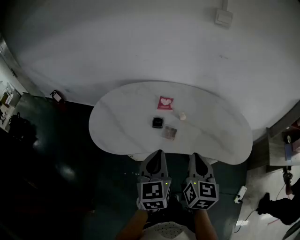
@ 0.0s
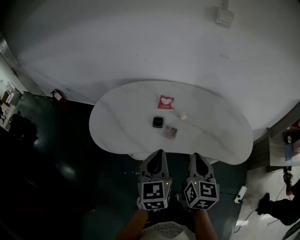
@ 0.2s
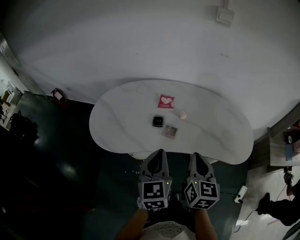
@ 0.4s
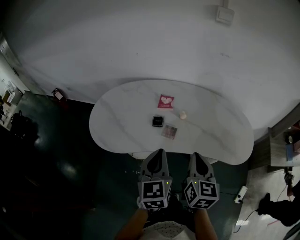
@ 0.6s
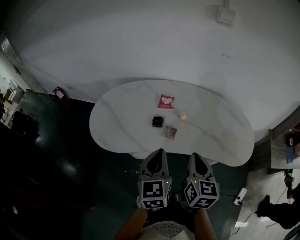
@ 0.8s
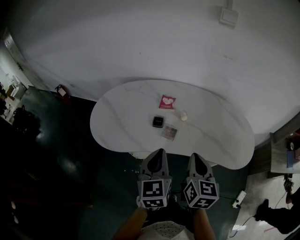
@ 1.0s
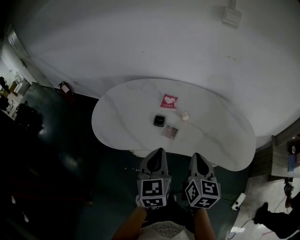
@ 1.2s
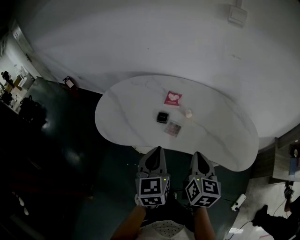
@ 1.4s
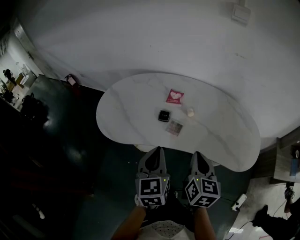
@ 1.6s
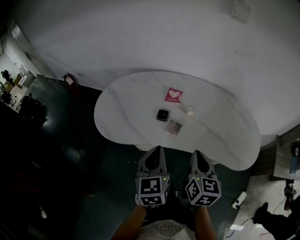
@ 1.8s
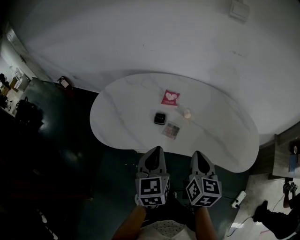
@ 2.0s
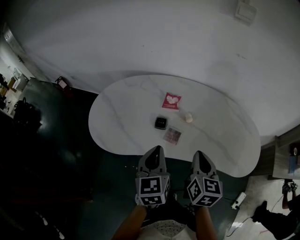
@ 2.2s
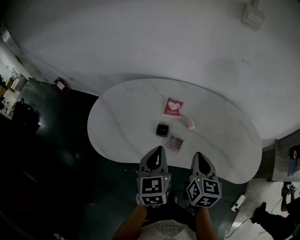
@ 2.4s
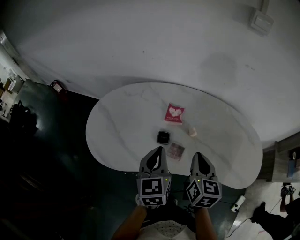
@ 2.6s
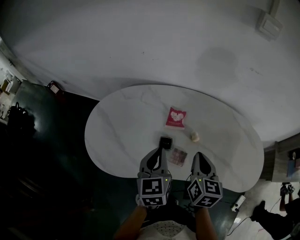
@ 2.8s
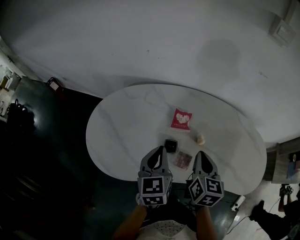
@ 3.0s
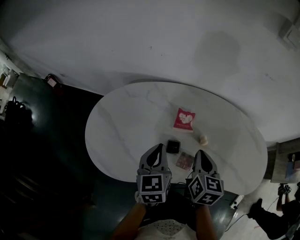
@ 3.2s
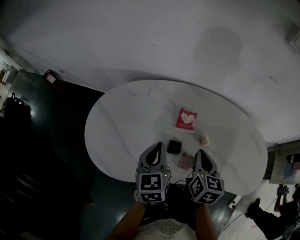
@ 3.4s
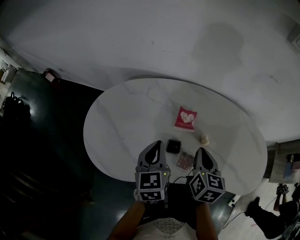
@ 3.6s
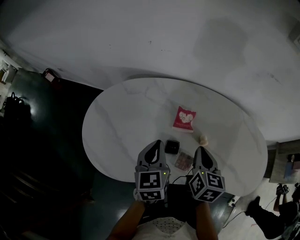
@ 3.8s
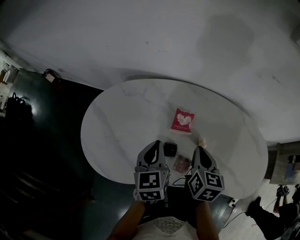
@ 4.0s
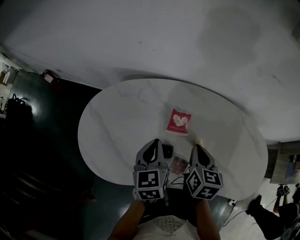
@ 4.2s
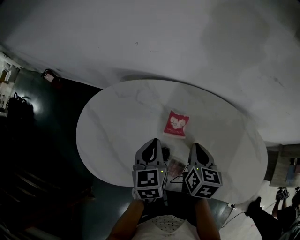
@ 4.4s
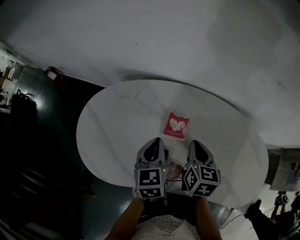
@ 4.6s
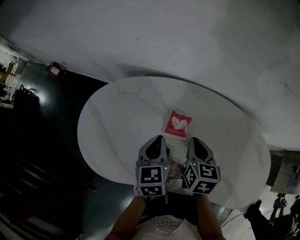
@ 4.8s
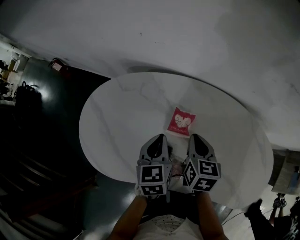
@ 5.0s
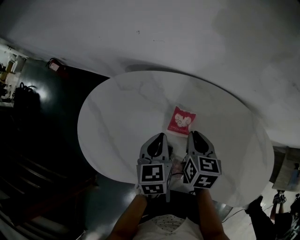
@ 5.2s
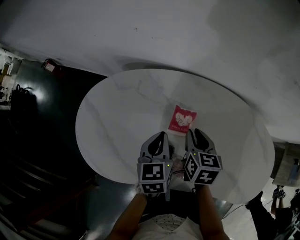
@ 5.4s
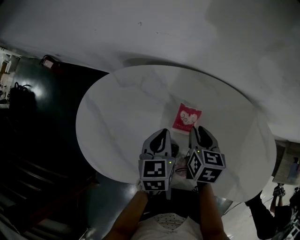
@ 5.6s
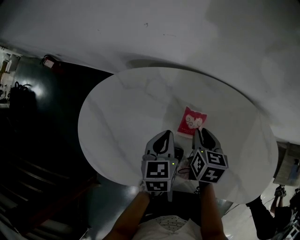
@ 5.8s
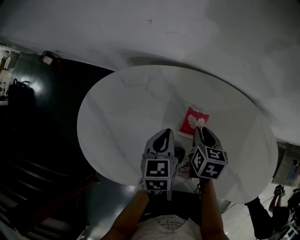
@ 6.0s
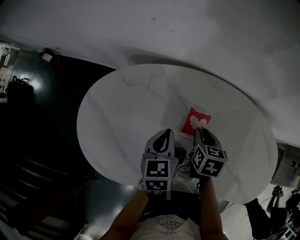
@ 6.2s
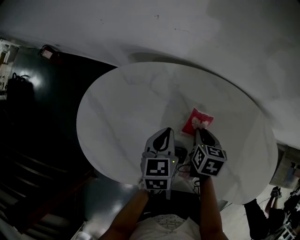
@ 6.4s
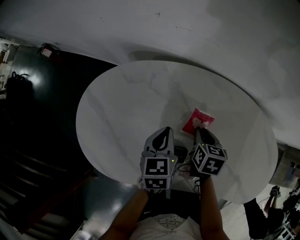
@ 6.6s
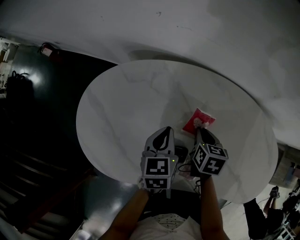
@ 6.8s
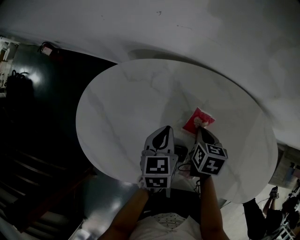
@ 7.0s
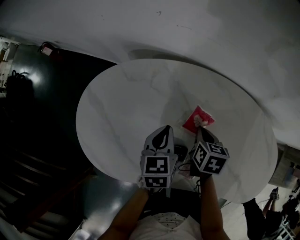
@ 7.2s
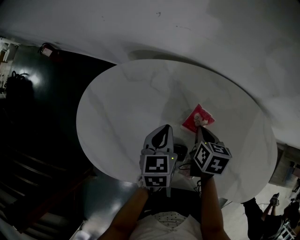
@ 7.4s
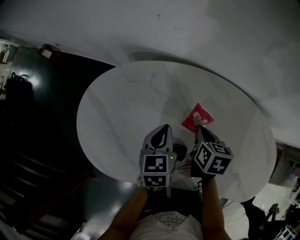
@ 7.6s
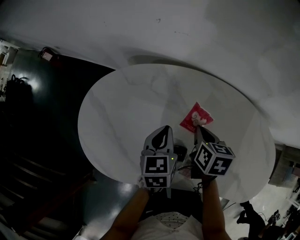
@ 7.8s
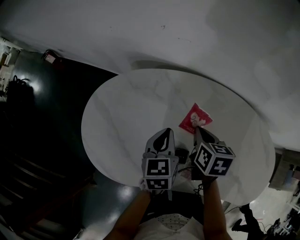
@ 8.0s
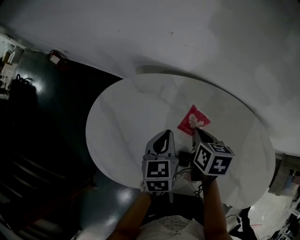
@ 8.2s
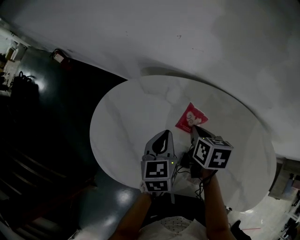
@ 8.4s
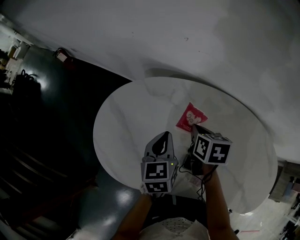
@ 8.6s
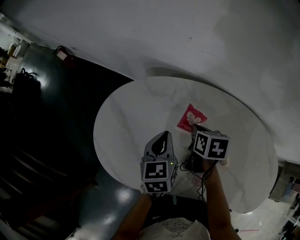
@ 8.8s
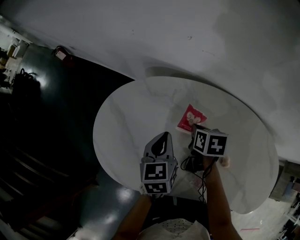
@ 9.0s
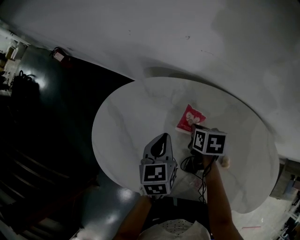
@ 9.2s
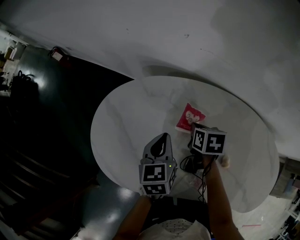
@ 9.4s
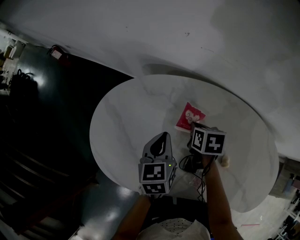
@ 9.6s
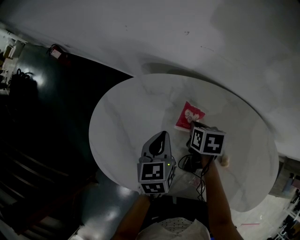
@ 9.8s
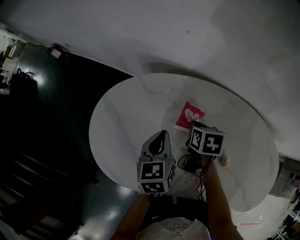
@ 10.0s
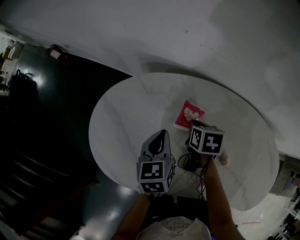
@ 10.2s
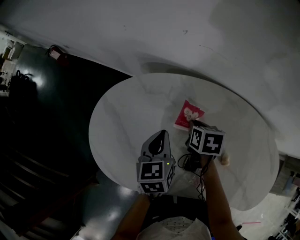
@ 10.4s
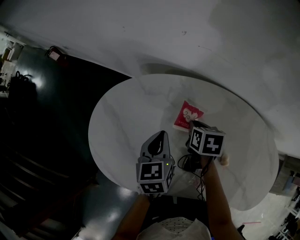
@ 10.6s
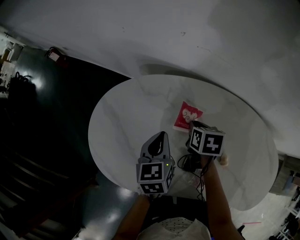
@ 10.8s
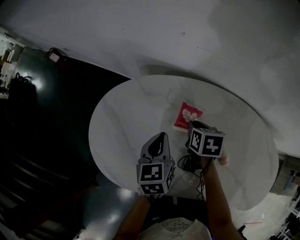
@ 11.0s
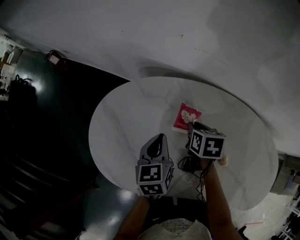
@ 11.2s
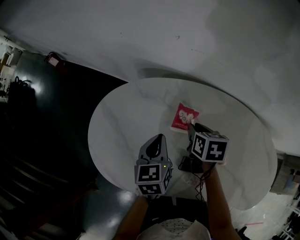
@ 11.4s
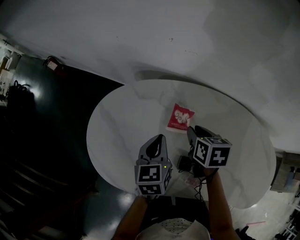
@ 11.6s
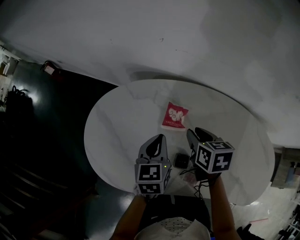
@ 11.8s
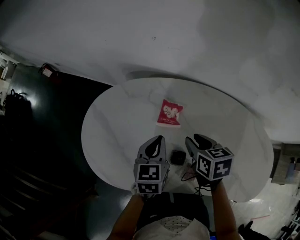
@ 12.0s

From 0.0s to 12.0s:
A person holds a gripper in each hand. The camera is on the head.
From 0.0s to 1.6s: The grippers stay close to where they were, moving slightly.
From 1.6s to 3.0s: The two grippers go roughly 20 cm forward.
From 3.0s to 4.4s: Both grippers move forward, roughly 10 cm.
From 4.4s to 6.0s: The right gripper goes roughly 10 cm downward and forward; the left gripper is displaced downward by approximately 5 cm.
From 6.0s to 7.6s: The grippers make only small movements.
From 7.6s to 9.0s: The left gripper goes about 10 cm to the left, while the right gripper heads to the left and forward, covering some 10 cm.
From 9.0s to 10.4s: The grippers move only a little.
From 10.4s to 12.0s: The right gripper travels backward and upward by about 10 cm; the left gripper goes roughly 5 cm to the right.

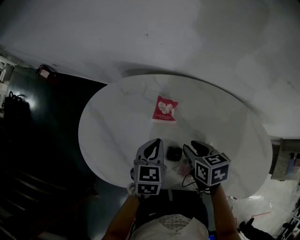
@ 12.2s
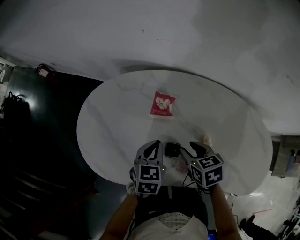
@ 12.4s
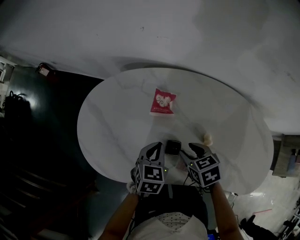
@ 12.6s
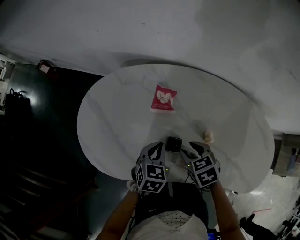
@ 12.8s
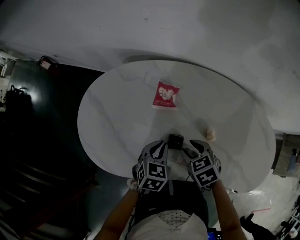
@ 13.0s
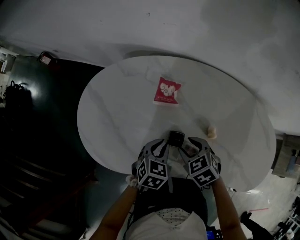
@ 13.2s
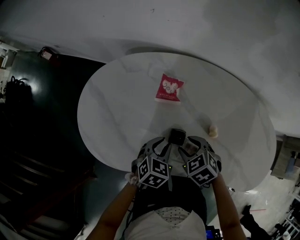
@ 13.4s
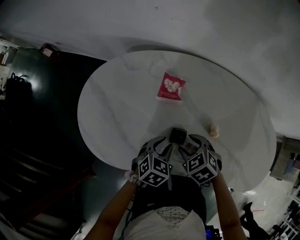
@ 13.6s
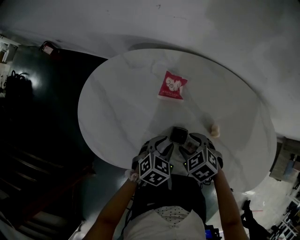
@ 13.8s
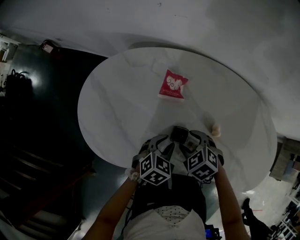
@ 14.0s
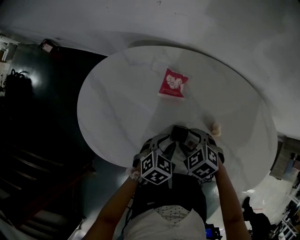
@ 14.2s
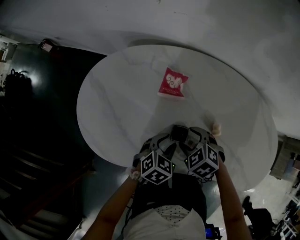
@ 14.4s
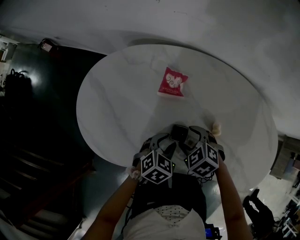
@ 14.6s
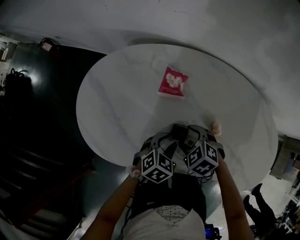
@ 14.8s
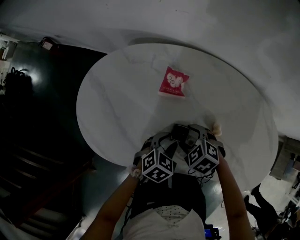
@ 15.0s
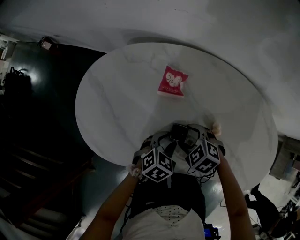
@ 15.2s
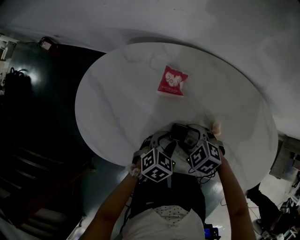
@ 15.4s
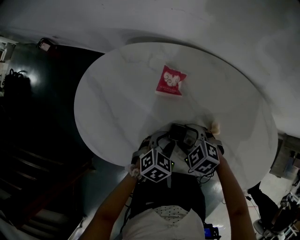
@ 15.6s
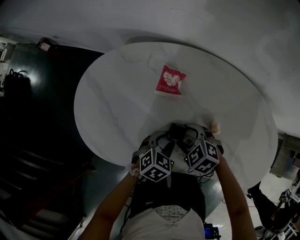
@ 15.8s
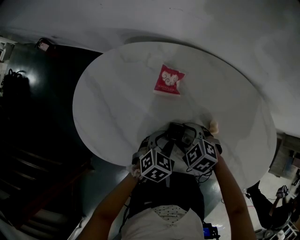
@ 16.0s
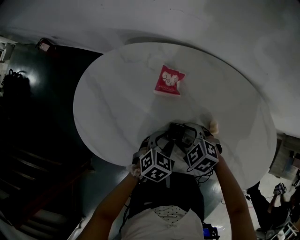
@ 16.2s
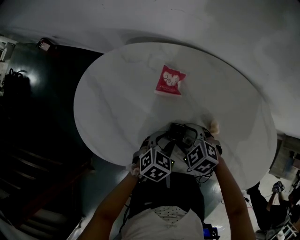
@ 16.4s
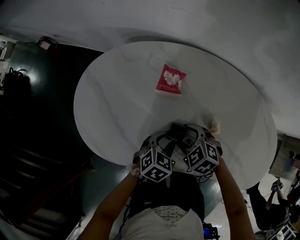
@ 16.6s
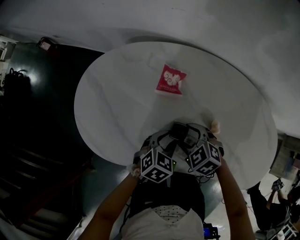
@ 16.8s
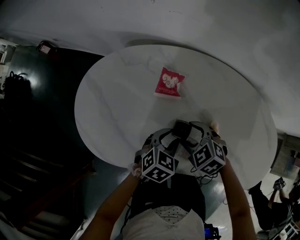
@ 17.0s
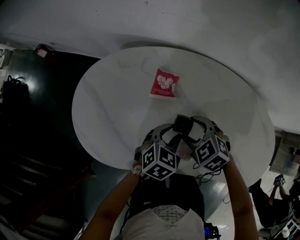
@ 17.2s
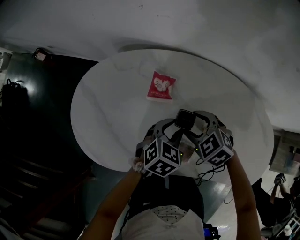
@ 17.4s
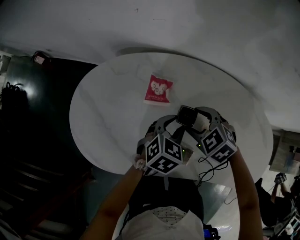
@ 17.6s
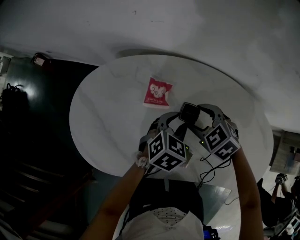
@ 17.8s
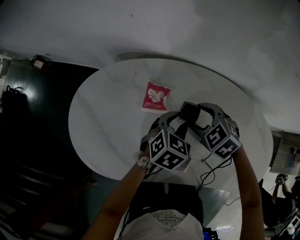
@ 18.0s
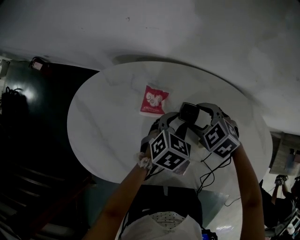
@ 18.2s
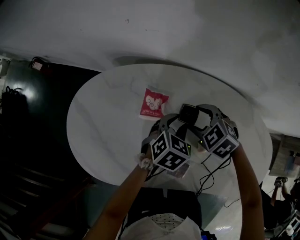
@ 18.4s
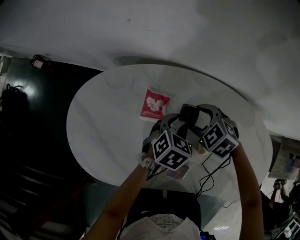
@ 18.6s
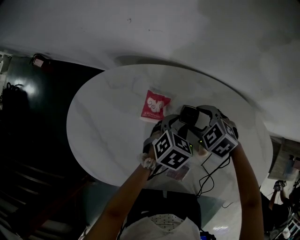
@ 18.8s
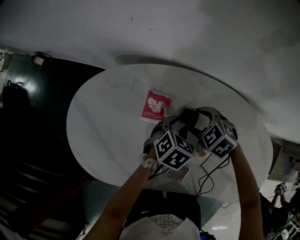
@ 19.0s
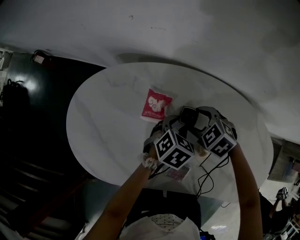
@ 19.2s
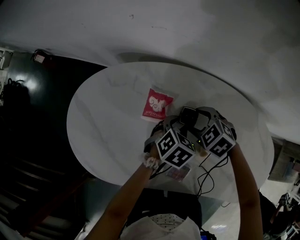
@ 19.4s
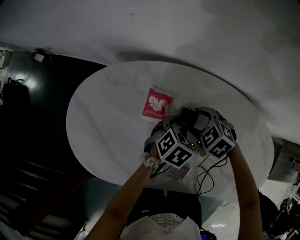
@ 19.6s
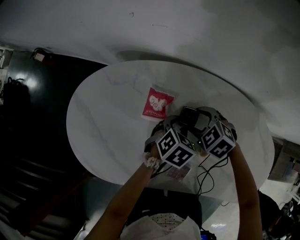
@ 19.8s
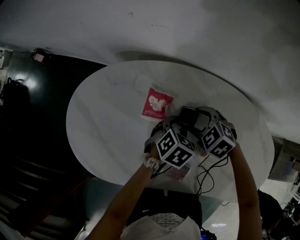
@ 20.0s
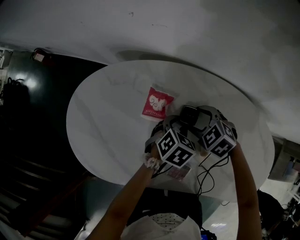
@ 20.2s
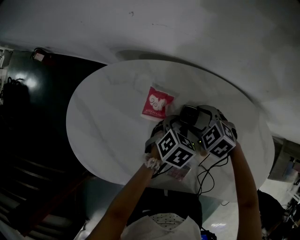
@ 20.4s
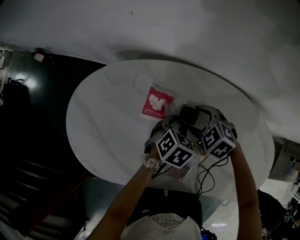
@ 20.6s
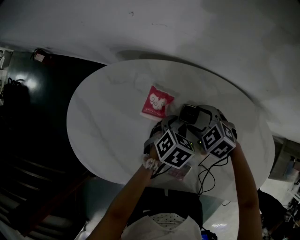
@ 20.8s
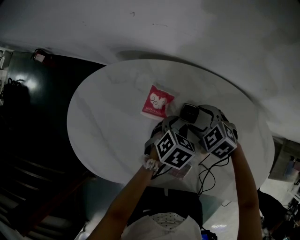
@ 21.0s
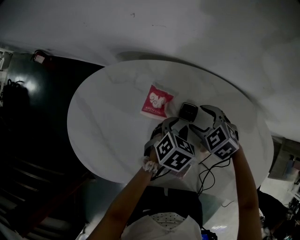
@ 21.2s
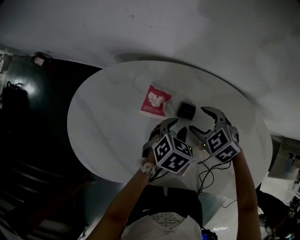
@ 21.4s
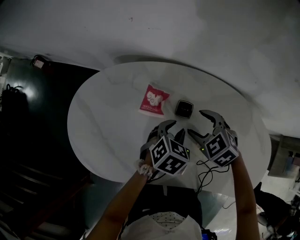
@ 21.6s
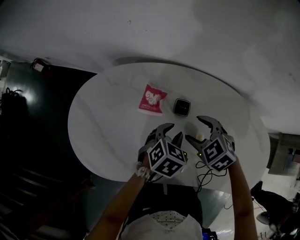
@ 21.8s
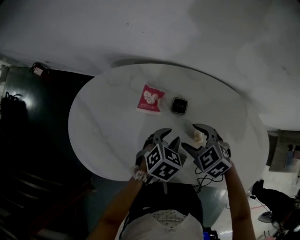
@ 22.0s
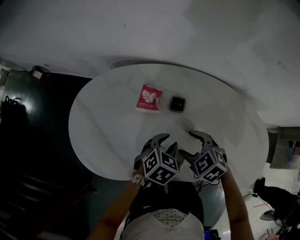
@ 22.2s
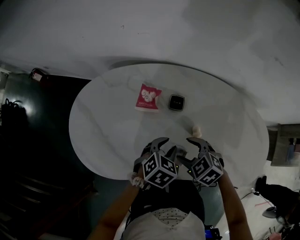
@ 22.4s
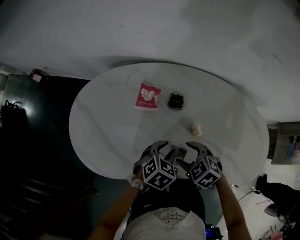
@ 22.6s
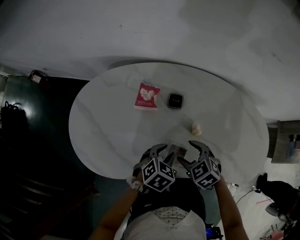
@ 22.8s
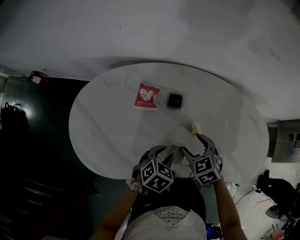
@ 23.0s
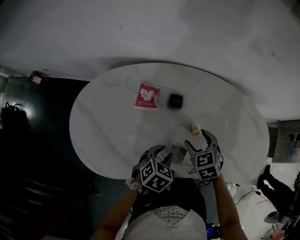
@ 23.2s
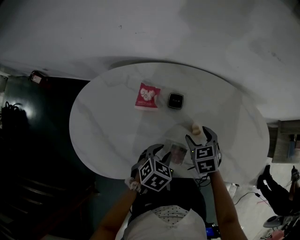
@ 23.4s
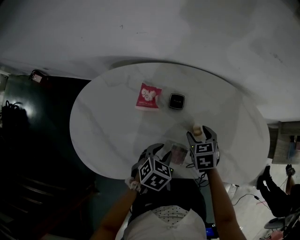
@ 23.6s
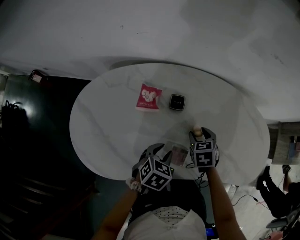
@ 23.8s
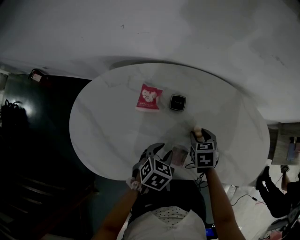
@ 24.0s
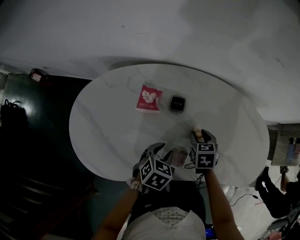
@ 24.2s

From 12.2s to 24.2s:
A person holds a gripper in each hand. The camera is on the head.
From 12.2s to 13.8s: Both grippers move backward and downward, some 10 cm. The left gripper swivels about 30 degrees, and opens its fingers. The right gripper twists approximately 40 degrees counterclockwise, seen from behind.
From 13.8s to 15.2s: The grippers make only small movements.
From 15.2s to 16.6s: Both grippers stay about where they are.
From 16.6s to 18.2s: The right gripper is displaced forward, to the right and upward by some 20 cm. Meanwhile the left gripper goes roughly 15 cm forward and to the right.
From 18.2s to 19.8s: Both grippers travel together downward, about 5 cm.
From 19.8s to 21.2s: The grippers stay close to where they were, moving slightly.
From 21.2s to 22.6s: Both grippers move backward, approximately 15 cm.
From 22.6s to 24.2s: The right gripper ends up about 15 cm from where it was, and turns by some 50 degrees.
